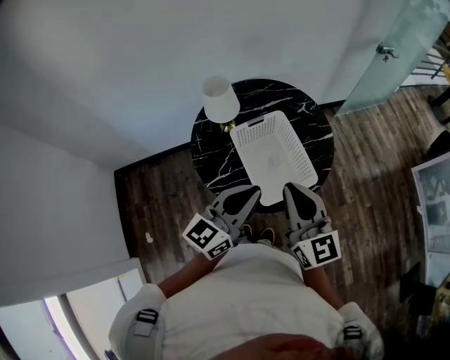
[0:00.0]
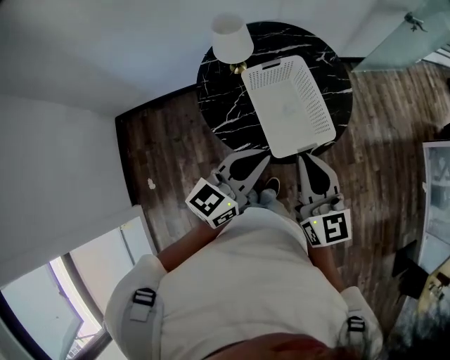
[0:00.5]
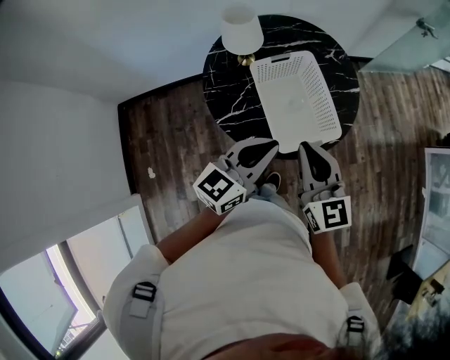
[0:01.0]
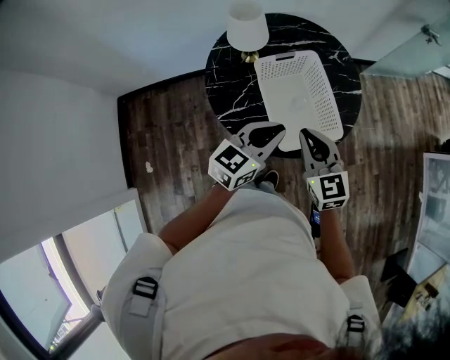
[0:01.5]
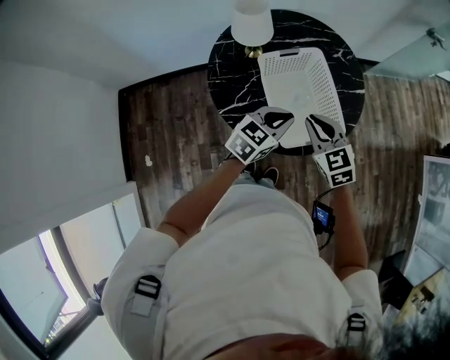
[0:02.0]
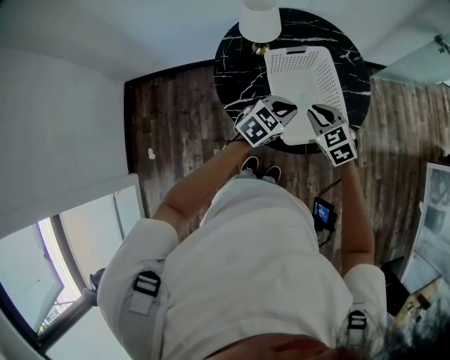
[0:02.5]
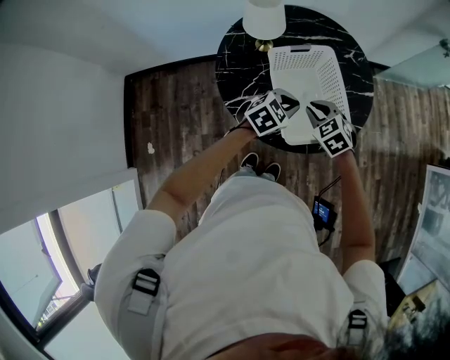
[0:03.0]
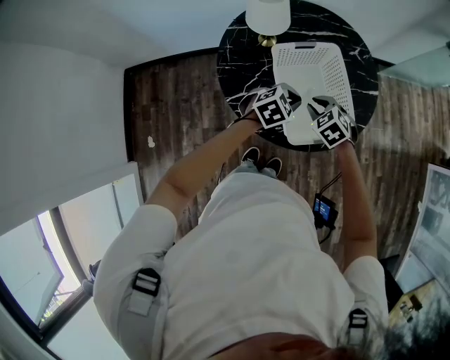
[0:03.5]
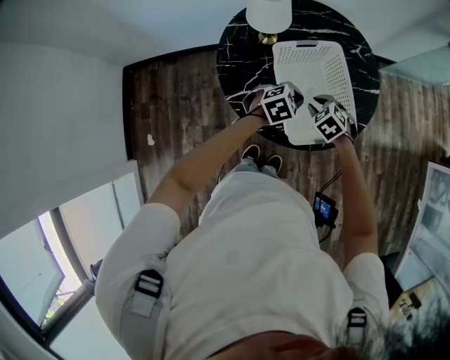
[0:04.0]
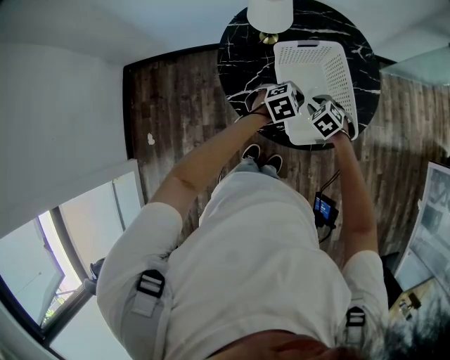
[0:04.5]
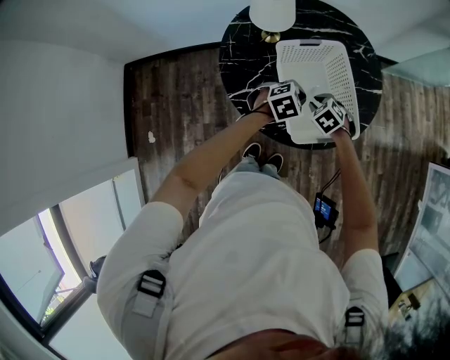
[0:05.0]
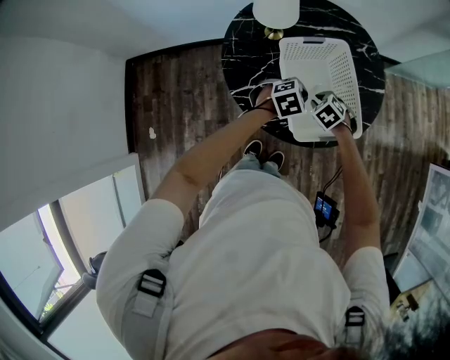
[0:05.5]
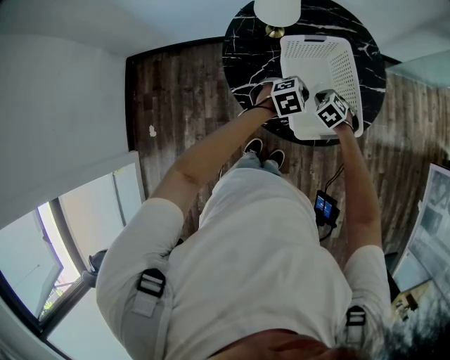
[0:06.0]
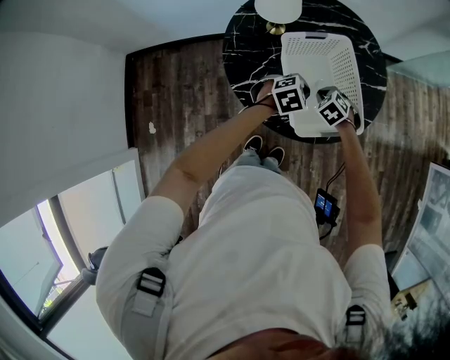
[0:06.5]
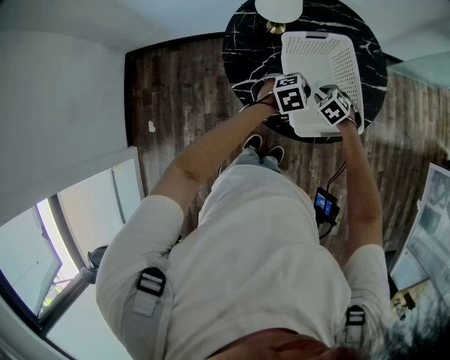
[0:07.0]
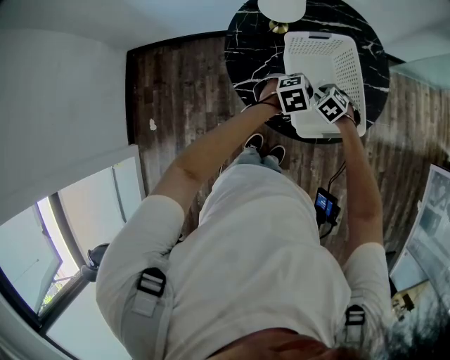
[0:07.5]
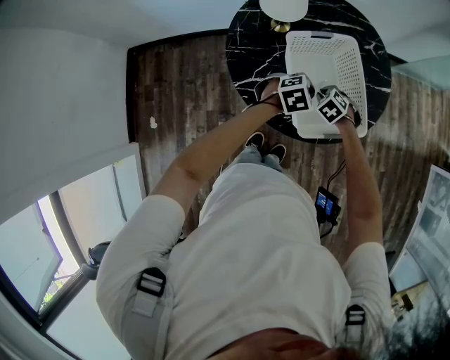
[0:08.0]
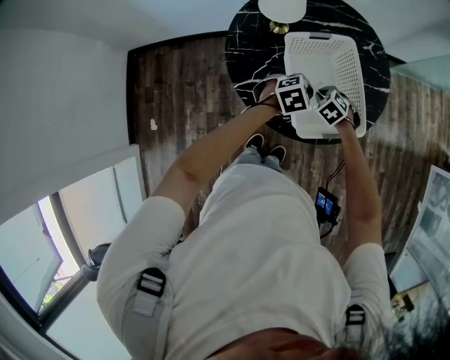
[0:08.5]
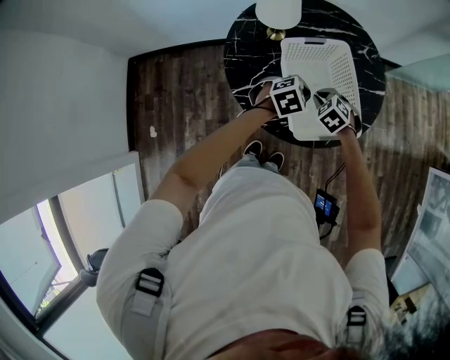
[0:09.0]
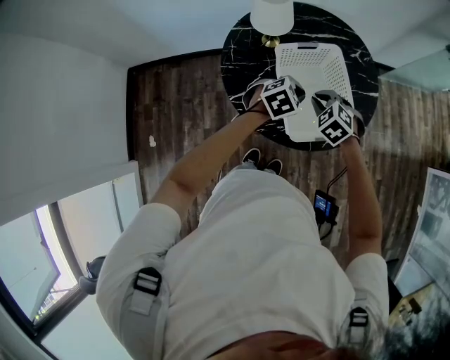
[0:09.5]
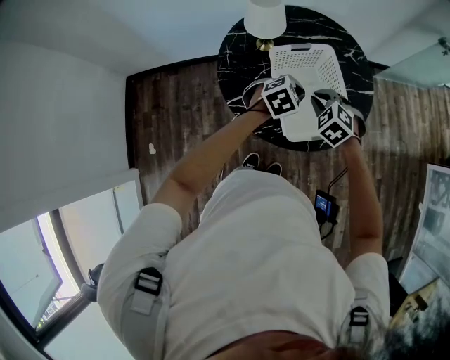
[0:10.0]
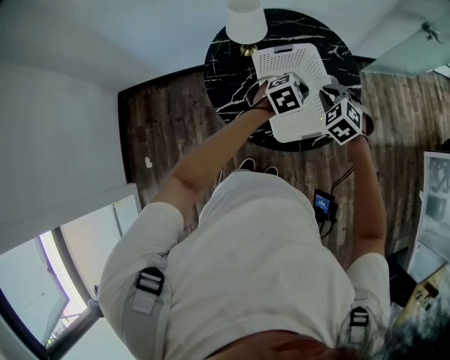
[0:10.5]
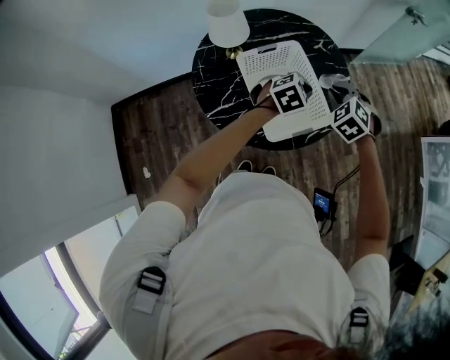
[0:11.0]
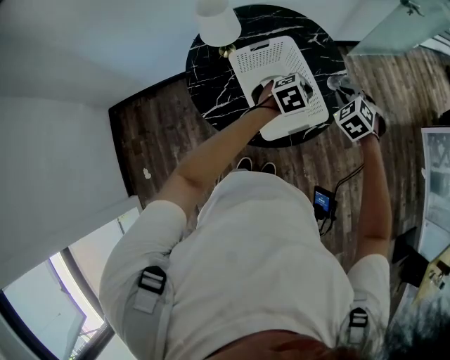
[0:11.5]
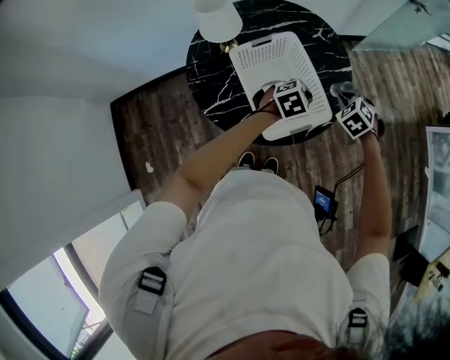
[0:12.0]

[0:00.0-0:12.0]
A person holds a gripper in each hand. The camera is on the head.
0:00.0 to 0:02.0: The two grippers go roughly 20 cm downward. The left gripper rotates approximately 30 degrees, while the right gripper points its fingers some 30 degrees further downward.
0:02.0 to 0:04.0: The two grippers go some 15 cm downward and forward. The right gripper points its fingers approximately 30 degrees further downward; the left gripper swivels roughly 30 degrees.
0:04.0 to 0:06.0: The right gripper changes place by roughly 5 cm.
0:06.0 to 0:08.0: The grippers stay close to where they were, moving slightly.
0:08.0 to 0:10.0: The right gripper goes some 15 cm upward, while the left gripper goes some 5 cm upward.
0:10.0 to 0:12.0: The right gripper travels to the right and forward by some 20 cm, and swivels roughly 20 degrees. The left gripper goes some 10 cm to the right.

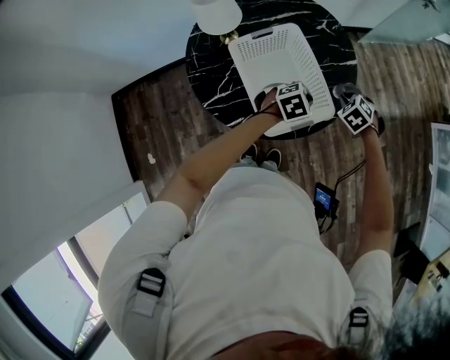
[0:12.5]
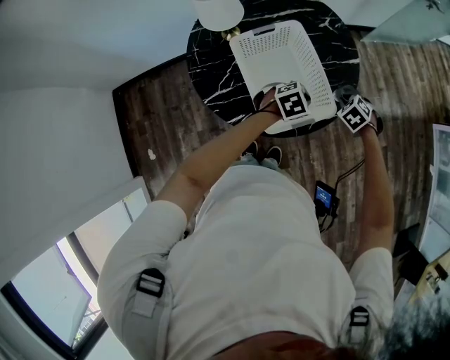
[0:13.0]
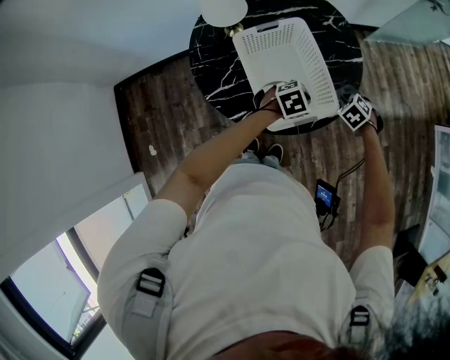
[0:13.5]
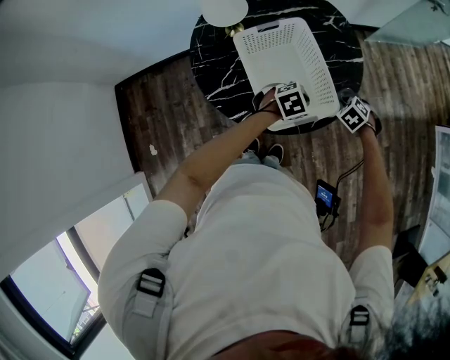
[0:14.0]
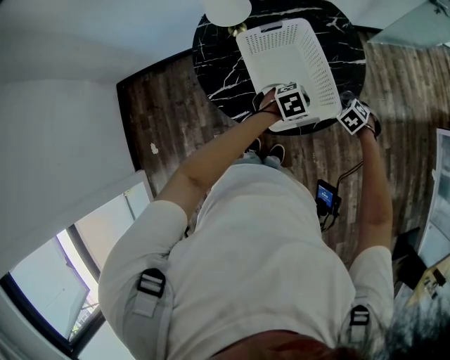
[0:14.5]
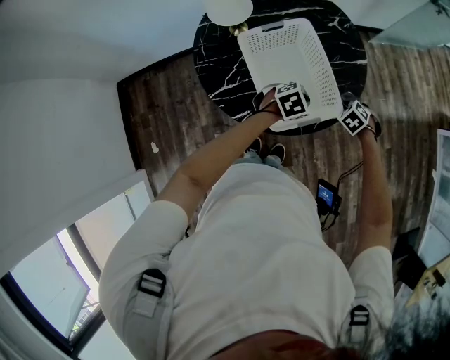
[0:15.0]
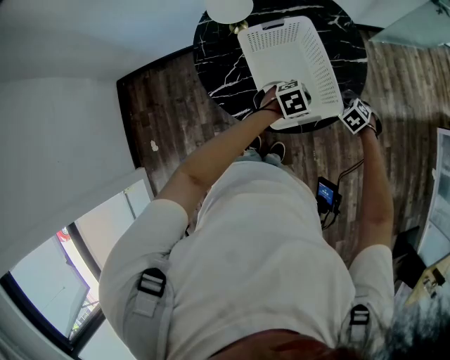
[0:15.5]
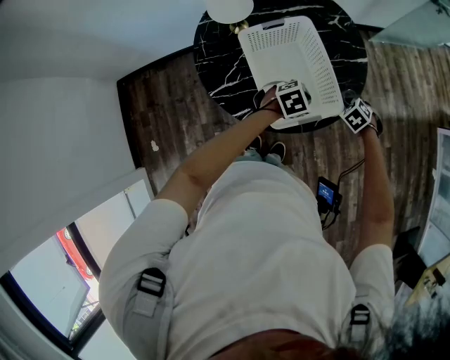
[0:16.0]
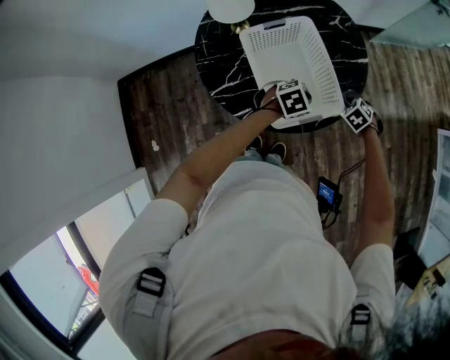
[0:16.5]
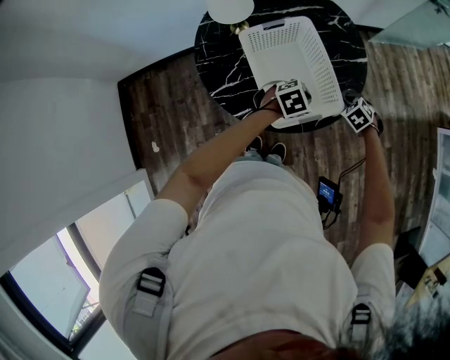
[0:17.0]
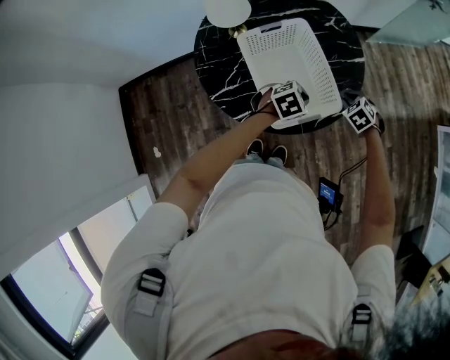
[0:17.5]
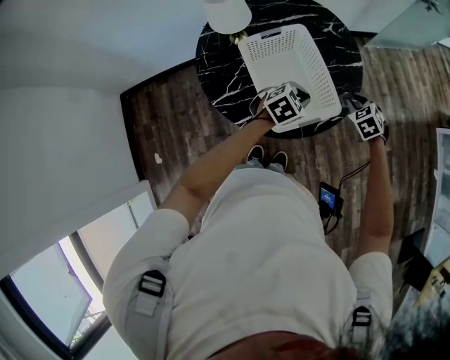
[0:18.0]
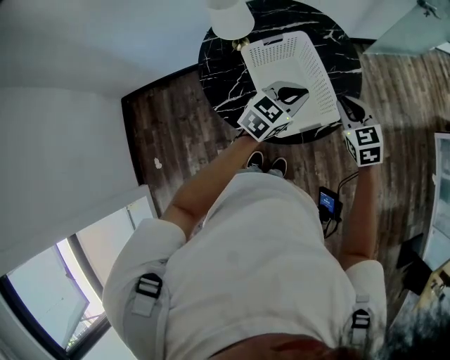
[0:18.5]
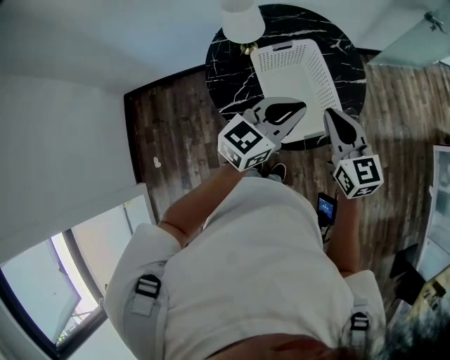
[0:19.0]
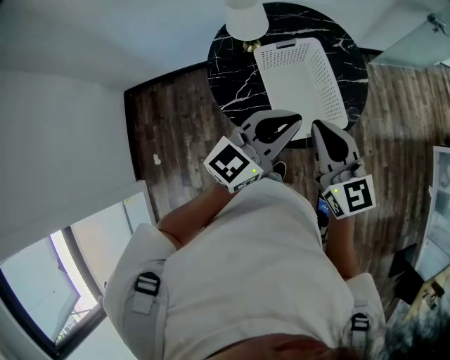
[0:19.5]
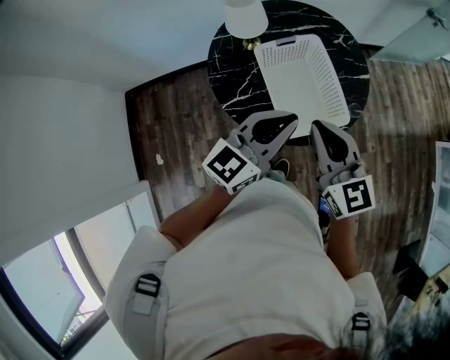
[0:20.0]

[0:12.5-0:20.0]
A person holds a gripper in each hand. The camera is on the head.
0:12.5 to 0:14.5: The right gripper moves downward, about 10 cm.
0:14.5 to 0:16.5: Both grippers stay put.
0:16.5 to 0:18.0: The left gripper moves some 5 cm. The right gripper goes some 10 cm upward.
0:18.0 to 0:20.0: The right gripper moves upward, to the left and backward, some 35 cm, and points its fingers some 50 degrees further upward; the left gripper shifts some 30 cm upward, backward and to the left, and tilts its fingers approximately 50 degrees upward.

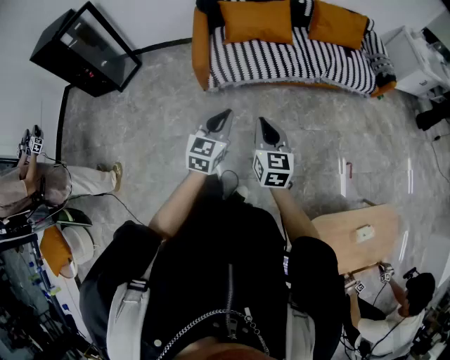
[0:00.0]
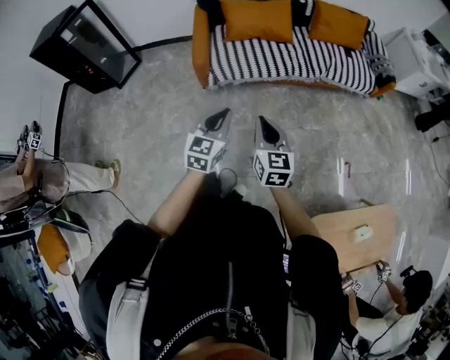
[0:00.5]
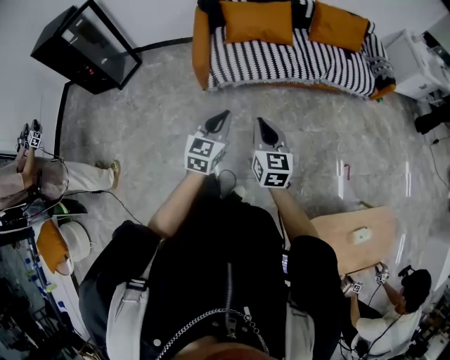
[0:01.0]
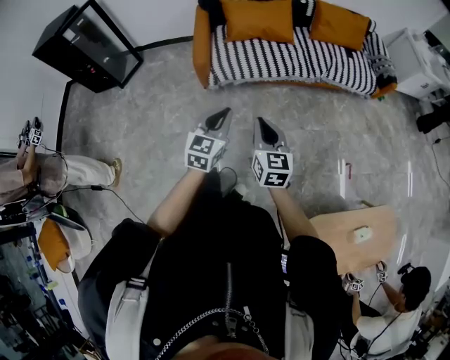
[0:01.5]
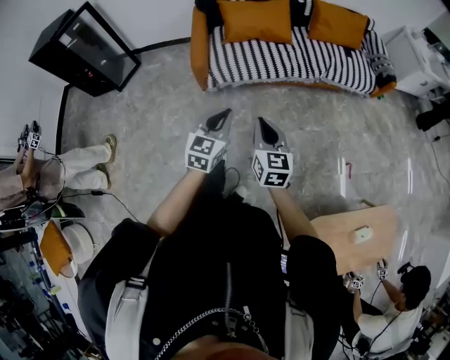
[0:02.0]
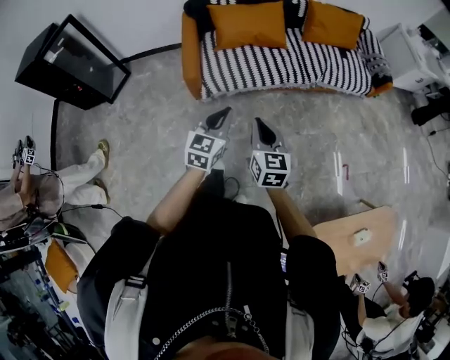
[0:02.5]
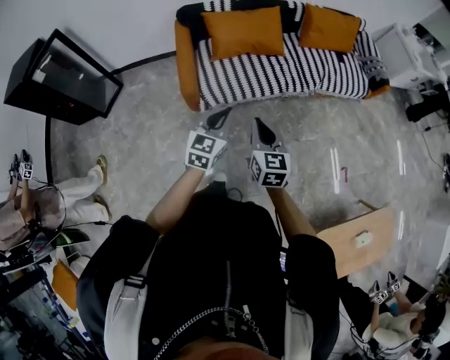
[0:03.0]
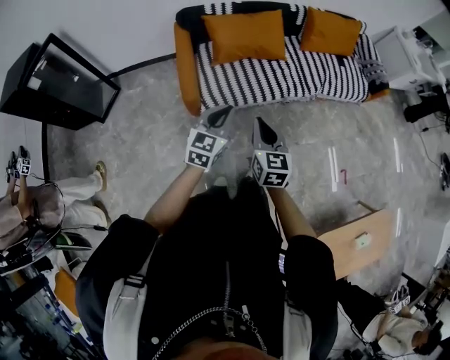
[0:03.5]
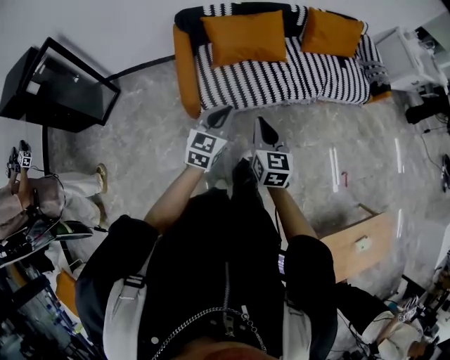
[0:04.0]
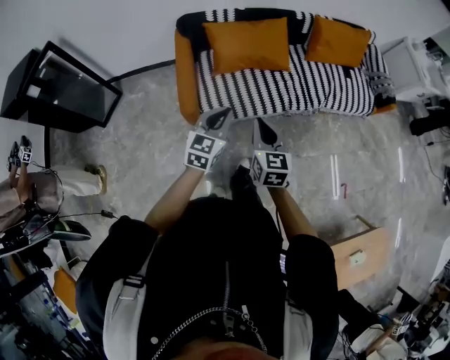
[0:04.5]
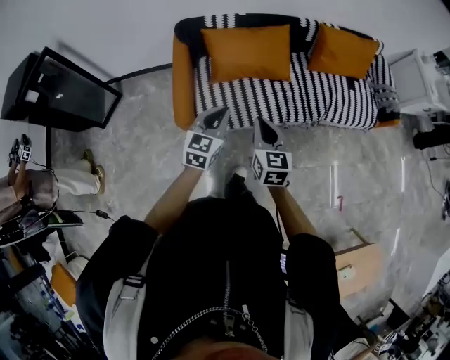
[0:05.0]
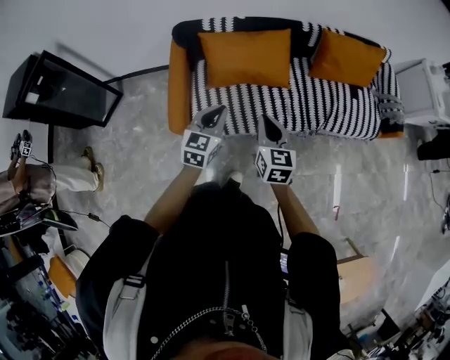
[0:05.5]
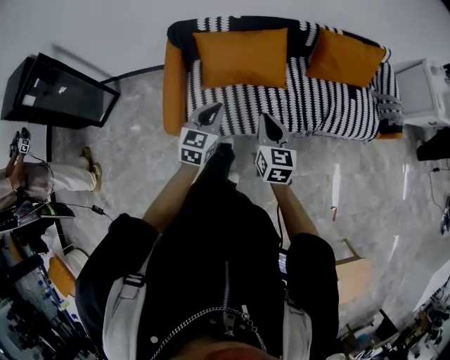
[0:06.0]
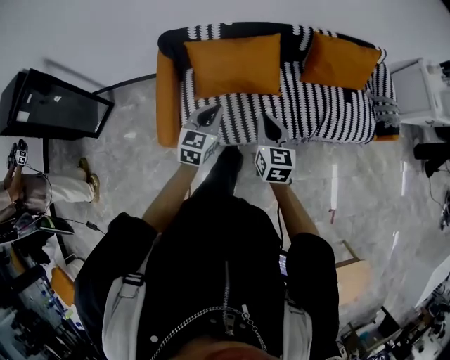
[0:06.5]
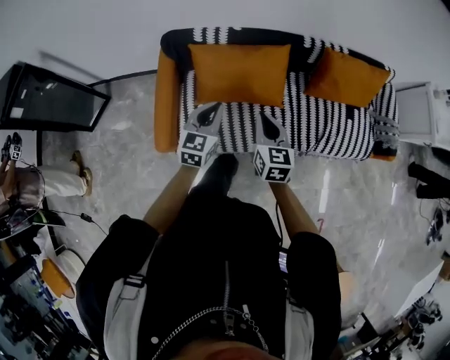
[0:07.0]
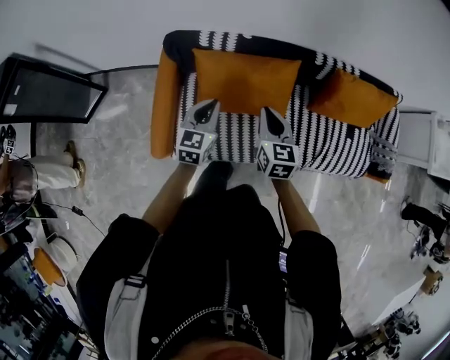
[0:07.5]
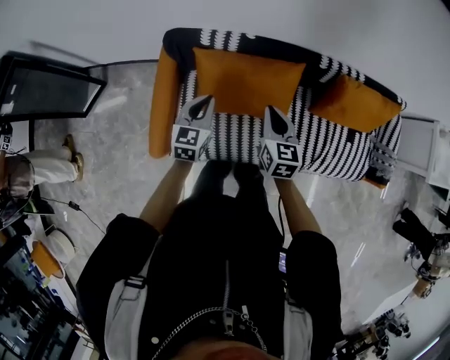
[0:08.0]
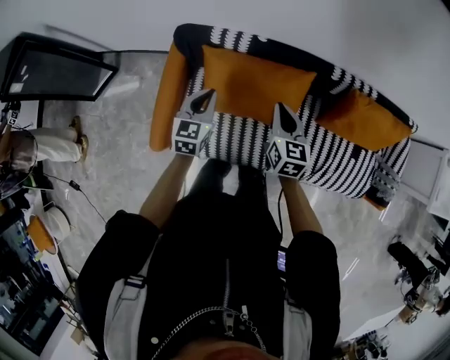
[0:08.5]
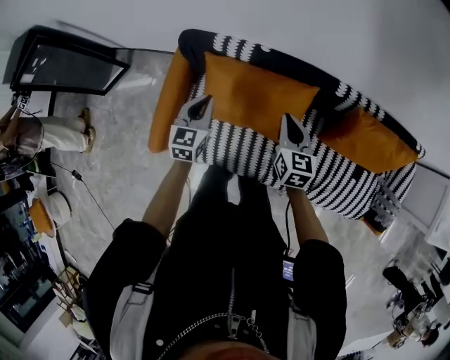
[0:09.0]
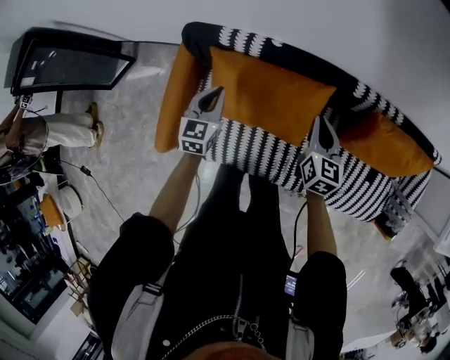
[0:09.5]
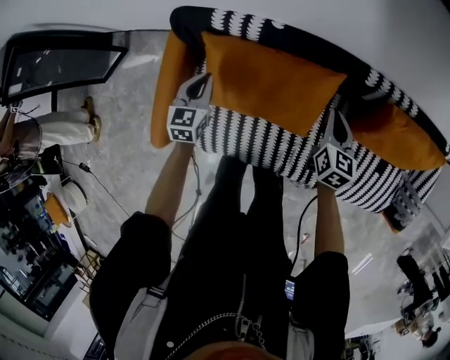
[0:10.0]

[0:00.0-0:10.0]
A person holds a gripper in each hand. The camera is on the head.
0:00.0 to 0:02.0: The grippers move only a little.
0:02.0 to 0:04.0: The left gripper shifts roughly 25 cm forward; the right gripper shifts some 30 cm forward and to the left.
0:04.0 to 0:06.0: The left gripper is displaced forward by roughly 25 cm. The right gripper moves forward and to the right, approximately 30 cm.
0:06.0 to 0:08.0: Both grippers travel together forward, roughly 30 cm.
0:08.0 to 0:10.0: The right gripper moves to the right, downward and forward, approximately 30 cm, while the left gripper goes about 20 cm downward and forward.
